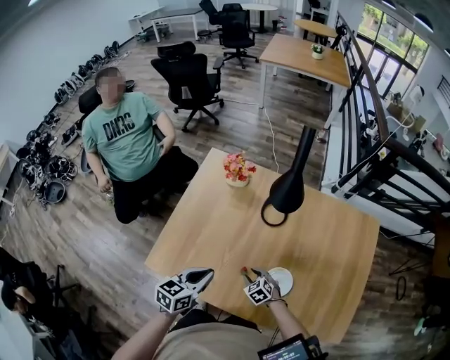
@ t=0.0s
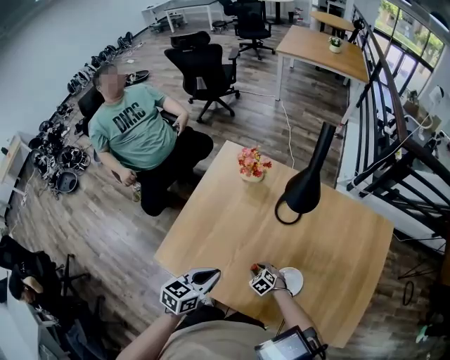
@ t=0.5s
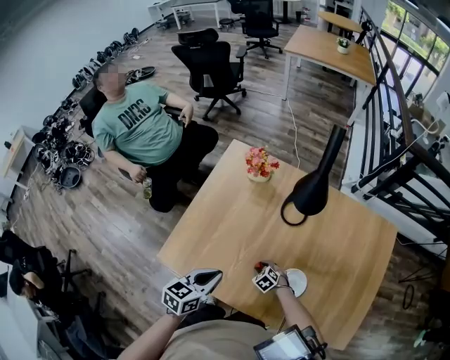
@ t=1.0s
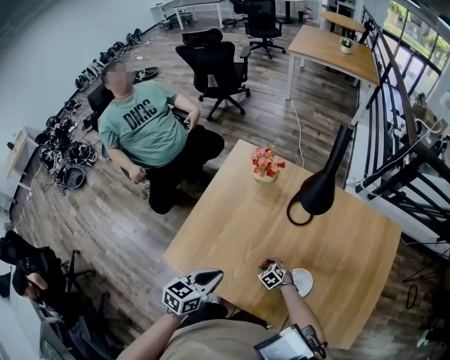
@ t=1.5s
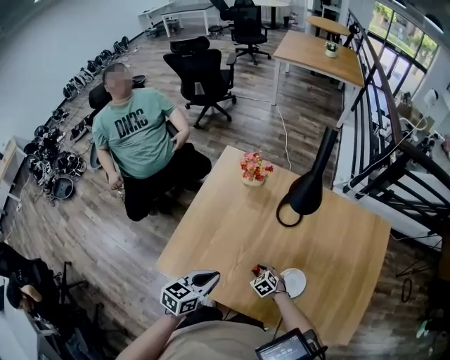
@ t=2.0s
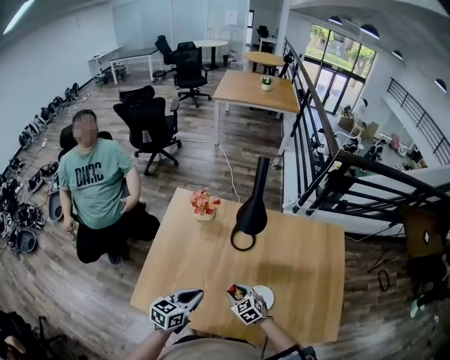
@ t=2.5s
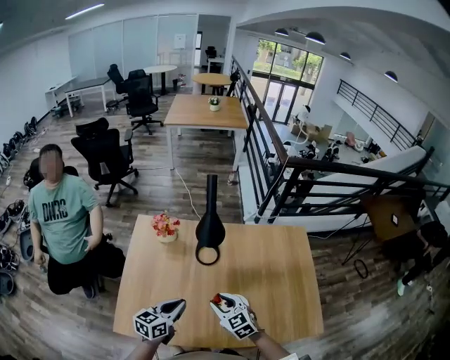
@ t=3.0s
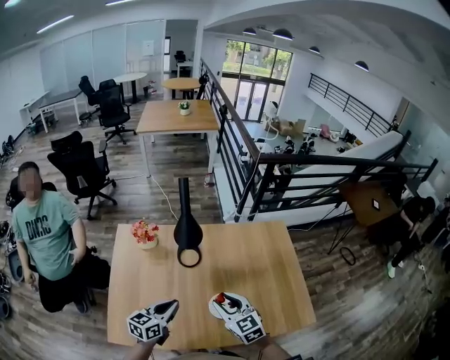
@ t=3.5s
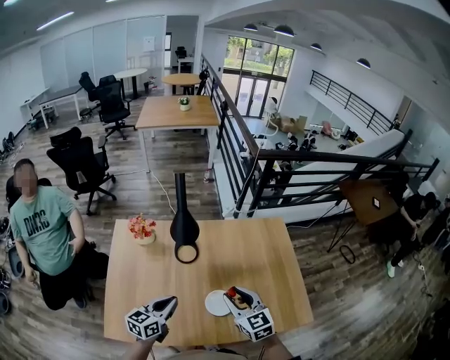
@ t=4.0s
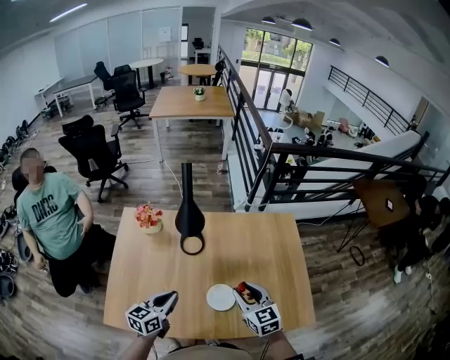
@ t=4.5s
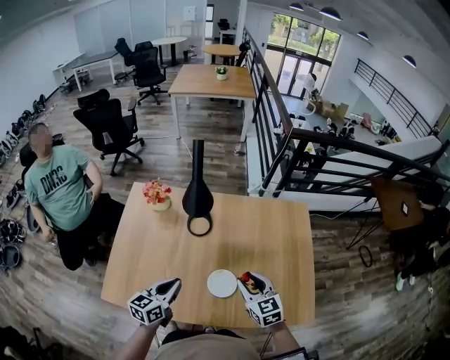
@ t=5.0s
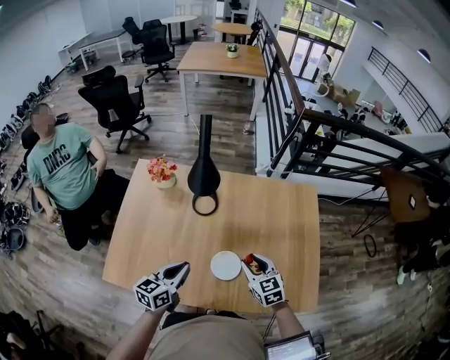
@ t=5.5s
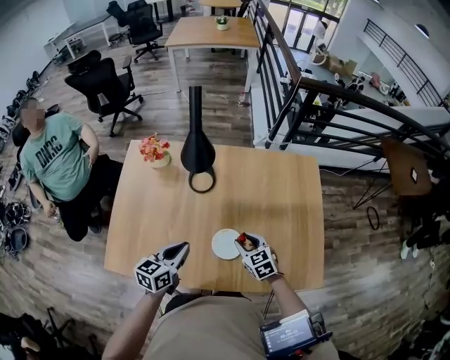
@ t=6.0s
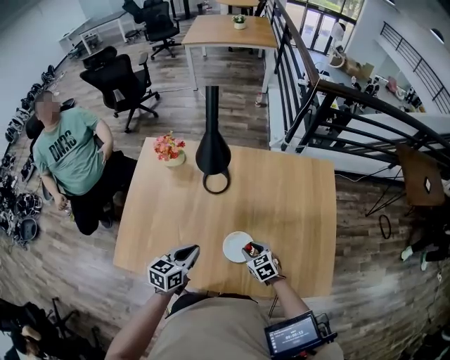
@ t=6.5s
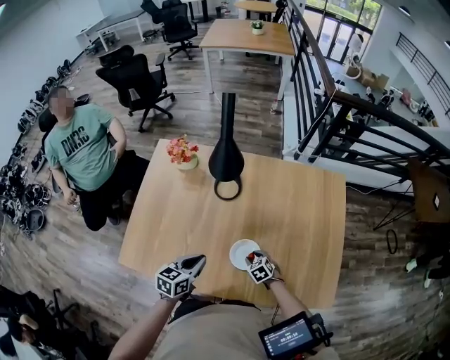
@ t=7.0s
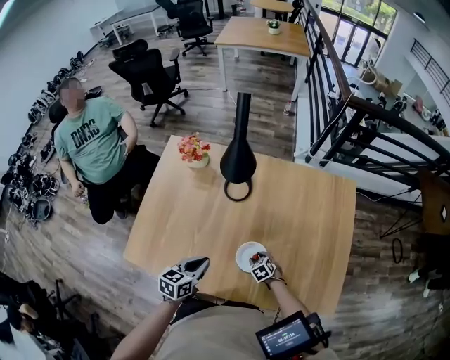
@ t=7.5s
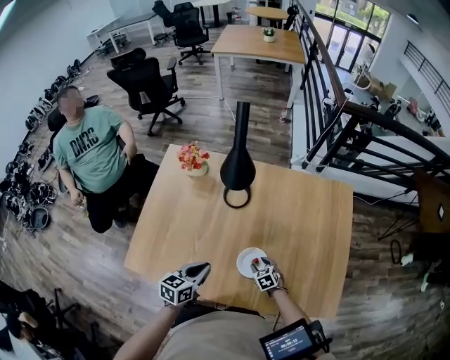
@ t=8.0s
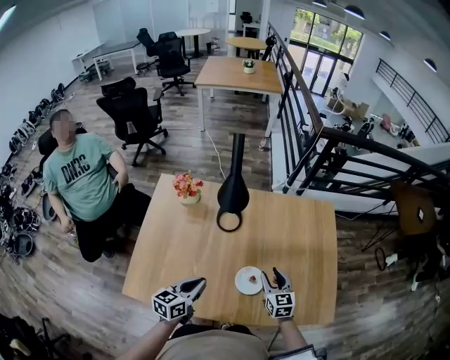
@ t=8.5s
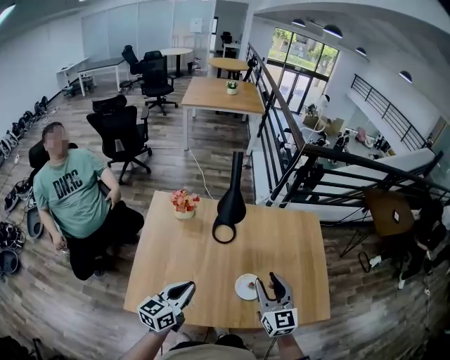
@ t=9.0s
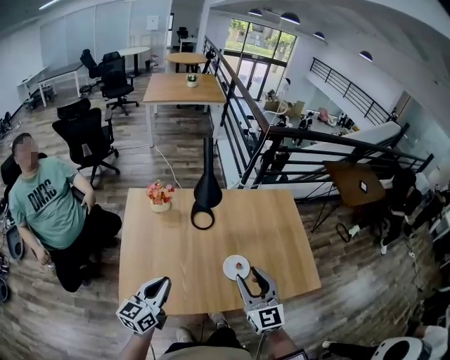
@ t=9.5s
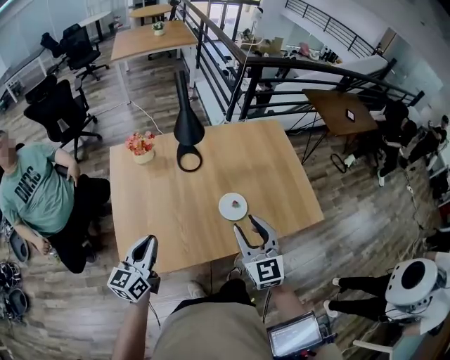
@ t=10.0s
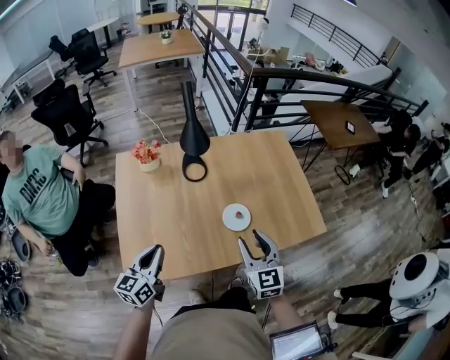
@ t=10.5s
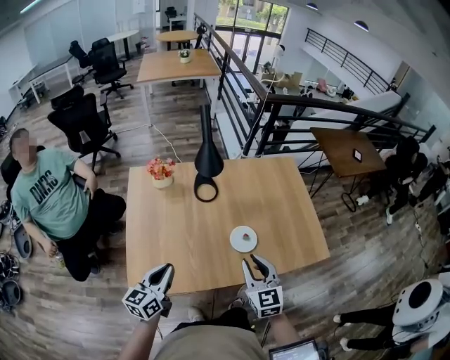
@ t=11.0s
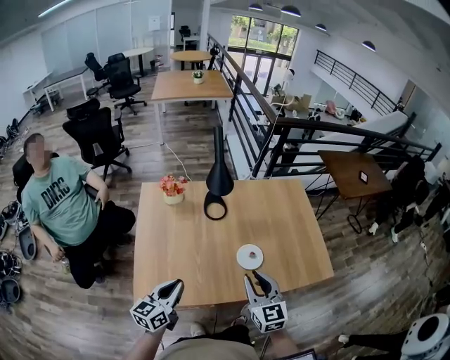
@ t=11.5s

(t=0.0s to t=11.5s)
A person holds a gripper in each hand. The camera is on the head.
t=0.0s - t=2.0s: The right gripper changes place by about 5 cm.
t=2.0s - t=4.0s: The left gripper moves some 15 cm, and rotates about 20 degrees; the right gripper goes roughly 40 cm upward, and tilts its fingers roughly 40 degrees upward.
t=4.0s - t=6.0s: The right gripper heads downward, covering about 20 cm, and turns by about 20 degrees, while the left gripper shifts roughly 5 cm downward.
t=6.0s - t=7.5s: The right gripper heads downward, covering roughly 20 cm, and turns by approximately 30 degrees, while the left gripper travels downward by some 5 cm.
t=7.5s - t=9.5s: The left gripper goes some 25 cm to the left and upward, and swivels about 30 degrees; the right gripper travels upward by some 50 cm, and angles its fingers upward, by some 60 degrees.
t=9.5s - t=11.5s: The right gripper goes approximately 5 cm downward, and closes up; the left gripper ends up approximately 5 cm from where it was.

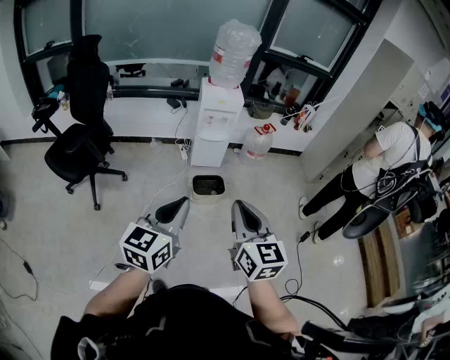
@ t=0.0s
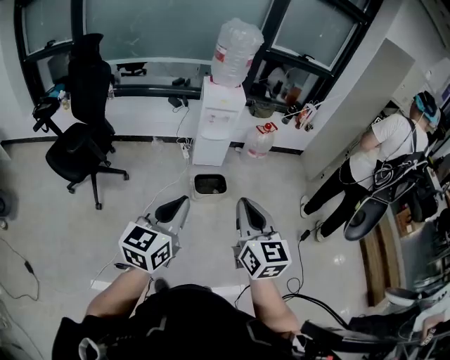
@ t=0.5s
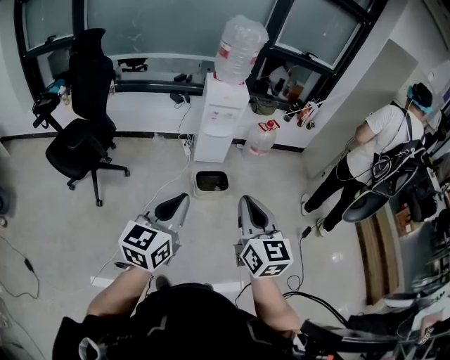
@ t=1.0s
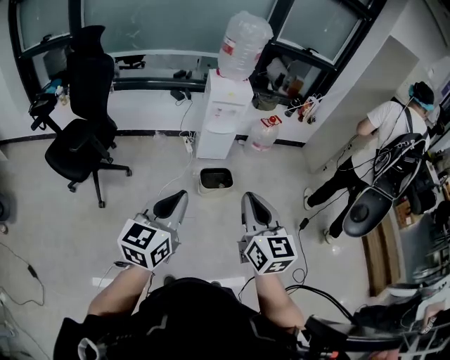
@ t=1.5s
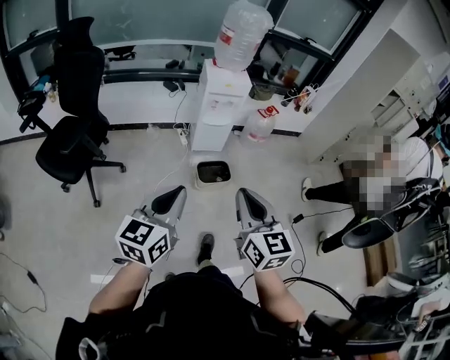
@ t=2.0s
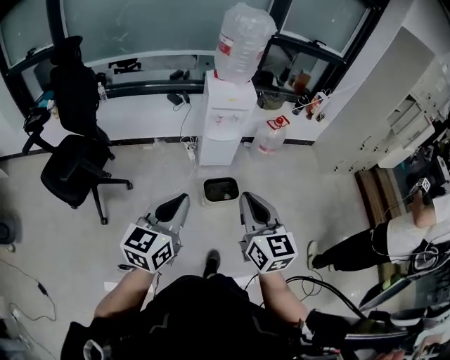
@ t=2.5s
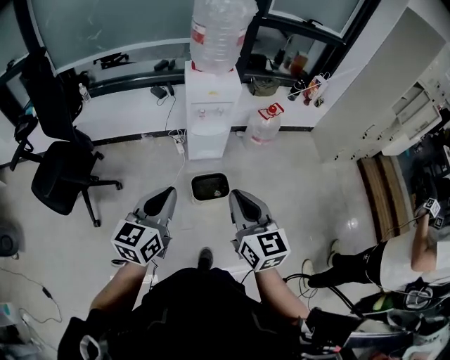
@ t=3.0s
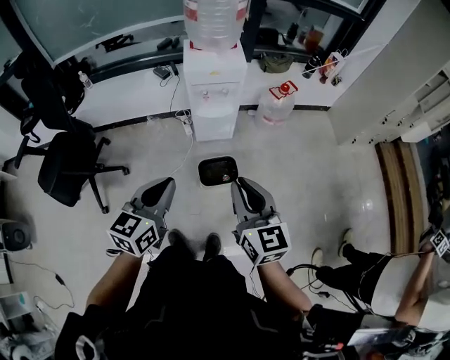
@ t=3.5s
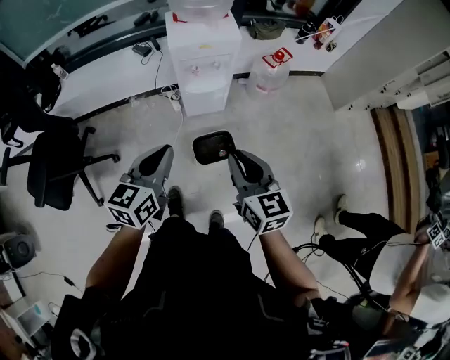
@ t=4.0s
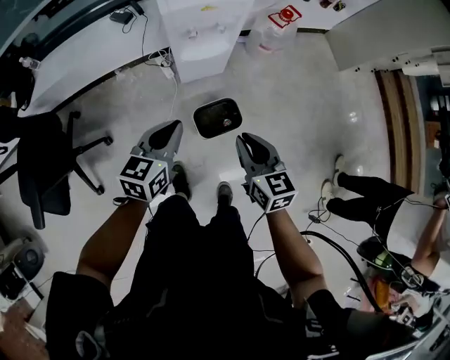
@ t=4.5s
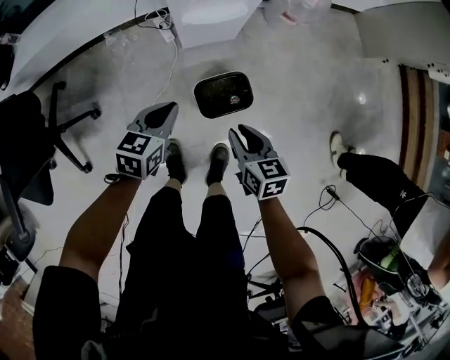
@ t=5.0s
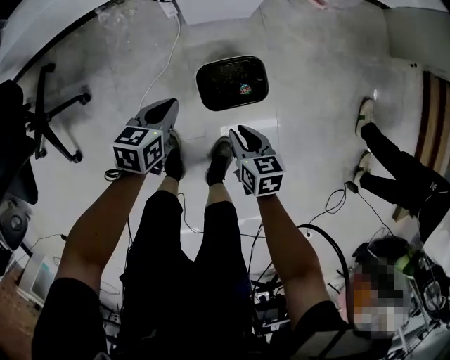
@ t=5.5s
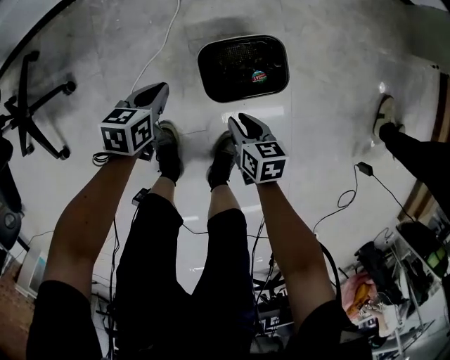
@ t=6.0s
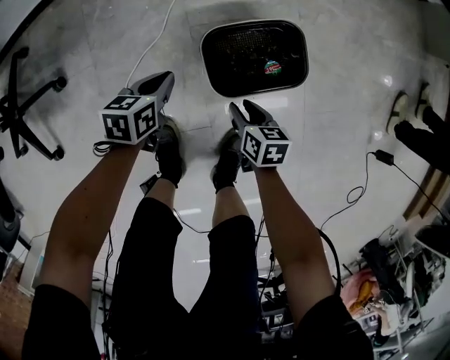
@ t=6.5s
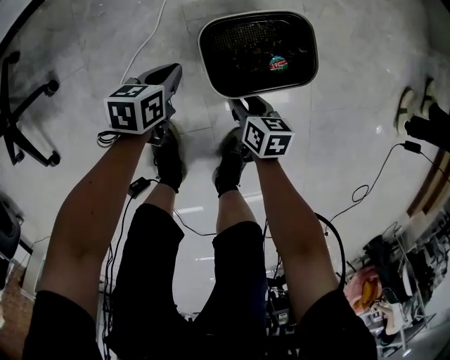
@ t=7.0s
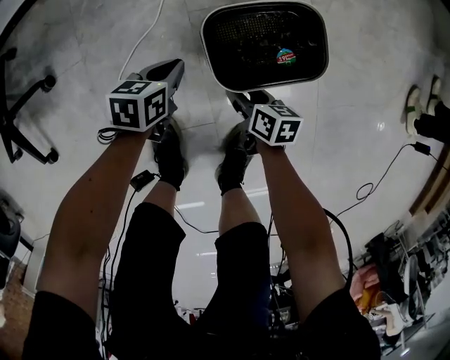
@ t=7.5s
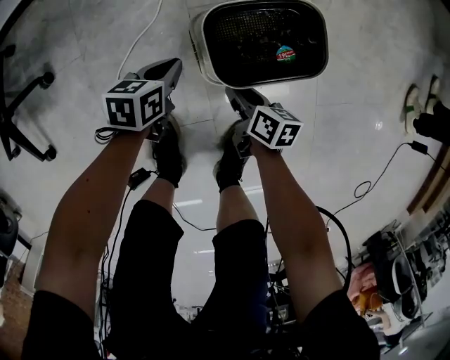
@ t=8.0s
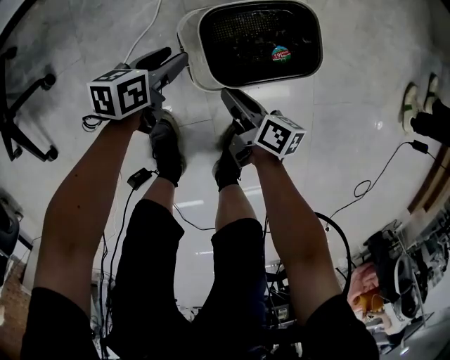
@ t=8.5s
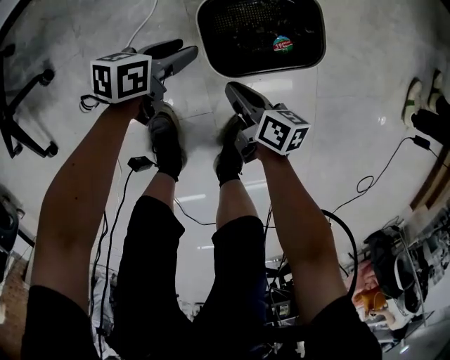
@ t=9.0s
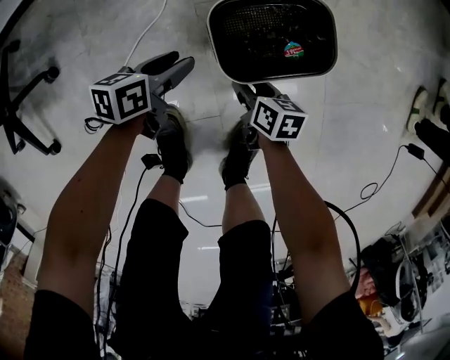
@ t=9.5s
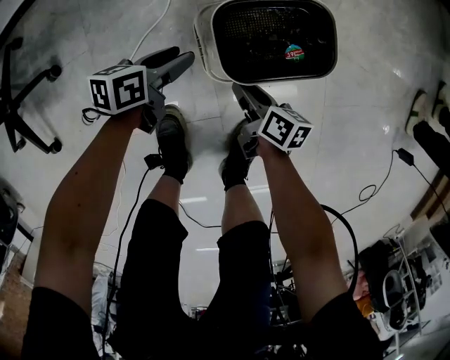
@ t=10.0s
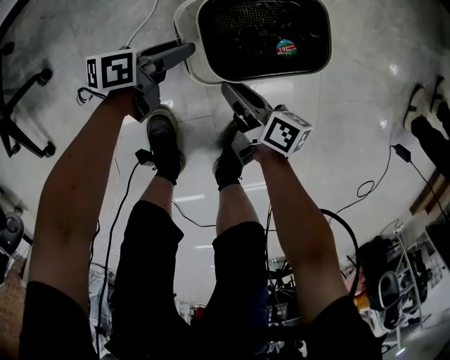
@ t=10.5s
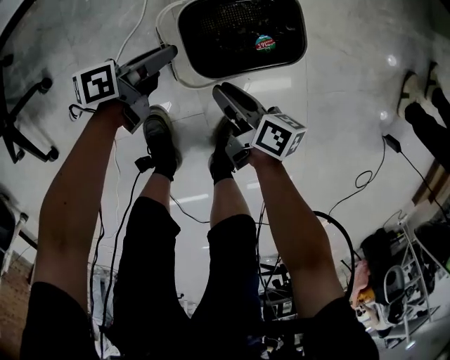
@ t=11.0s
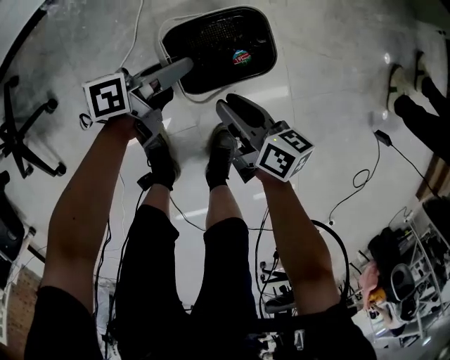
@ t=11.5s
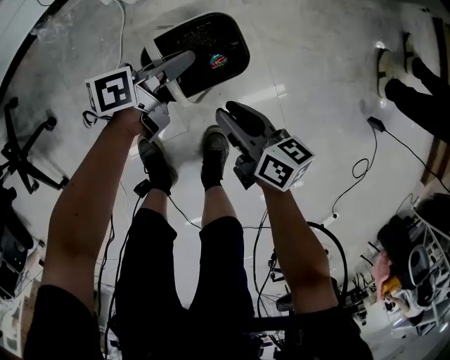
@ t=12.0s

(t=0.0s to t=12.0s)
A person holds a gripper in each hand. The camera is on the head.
t=0.0s - t=2.0s: The grippers both shift to the left and forward by roughly 10 cm.
t=2.0s - t=4.0s: The grippers both shift forward by about 40 cm.
t=4.0s - t=6.0s: Both grippers travel together downward, approximately 70 cm. The left gripper tilts its fingers roughly 30 degrees downward. The right gripper tilts its fingers approximately 40 degrees downward.
t=6.0s - t=8.0s: The grippers both shift downward by roughly 15 cm. The right gripper turns by about 20 degrees, and opens, then closes again.
t=8.0s - t=10.0s: The left gripper opens.
t=10.0s - t=12.0s: The left gripper heads to the right, upward and forward, covering roughly 25 cm, changes its angle by some 20 degrees, and closes; the right gripper goes approximately 20 cm upward and to the right.

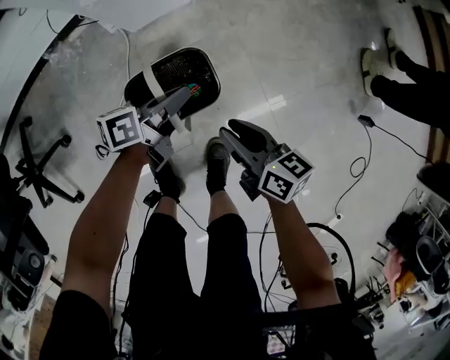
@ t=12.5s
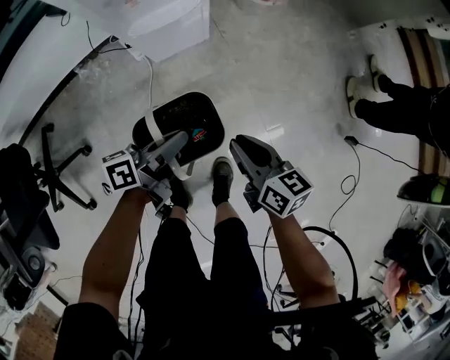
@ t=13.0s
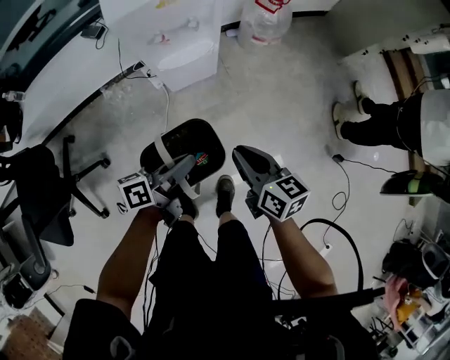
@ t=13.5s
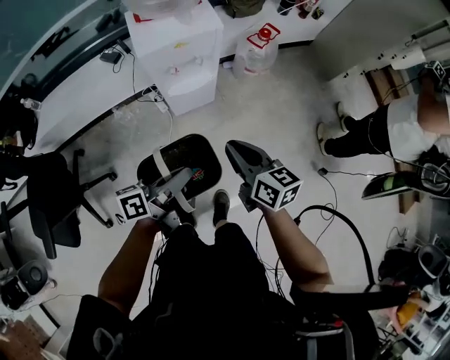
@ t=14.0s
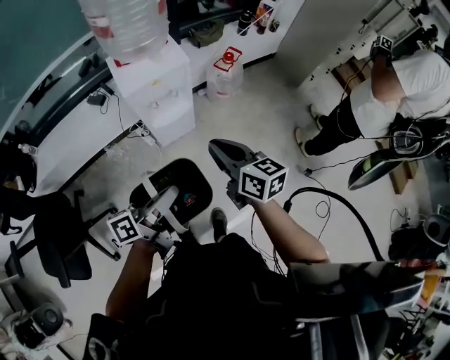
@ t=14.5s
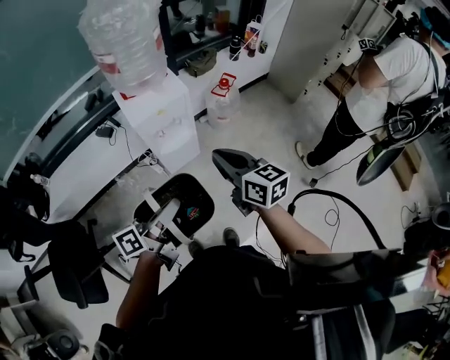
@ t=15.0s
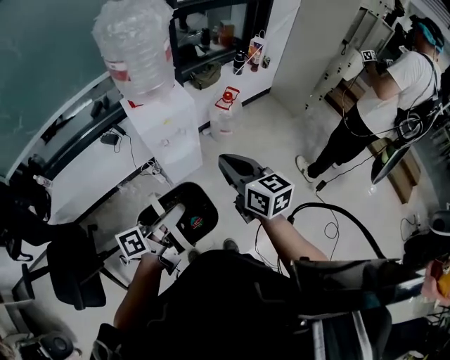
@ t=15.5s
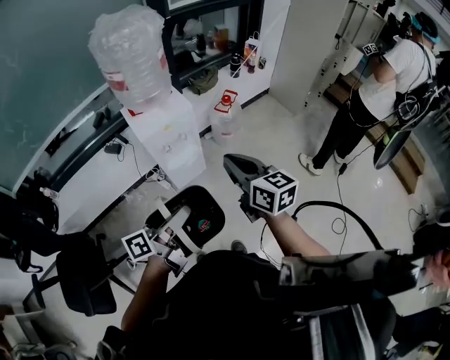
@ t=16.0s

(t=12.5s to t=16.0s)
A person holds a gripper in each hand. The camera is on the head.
t=12.5s - t=14.5s: Both grippers move upward, roughly 60 cm. The right gripper changes its angle by roughly 30 degrees, and closes its fingers. Meanwhile the left gripper changes its angle by some 20 degrees.
t=14.5s - t=16.0s: The two grippers go about 10 cm upward.
